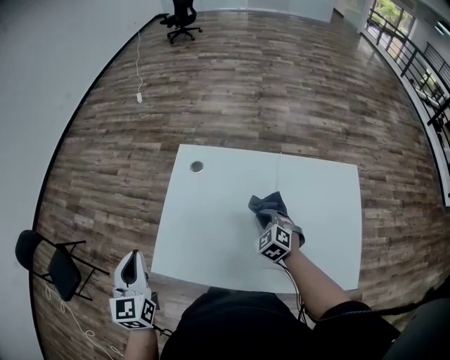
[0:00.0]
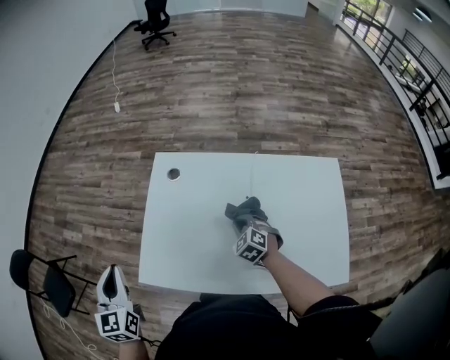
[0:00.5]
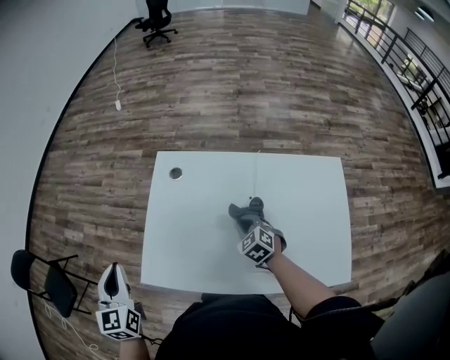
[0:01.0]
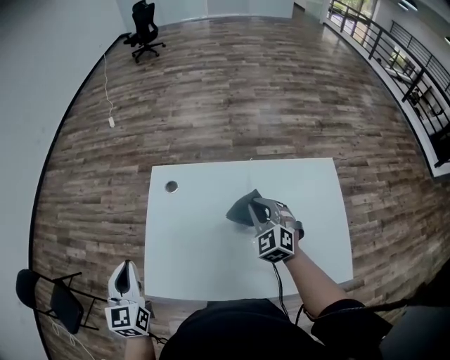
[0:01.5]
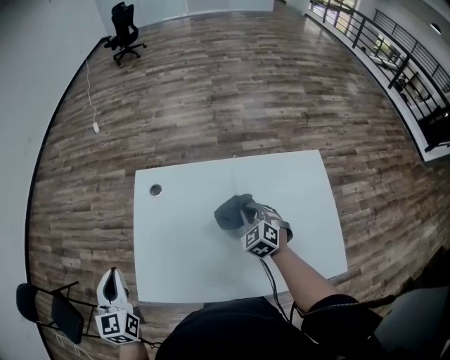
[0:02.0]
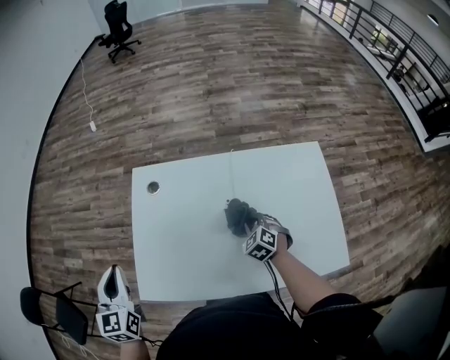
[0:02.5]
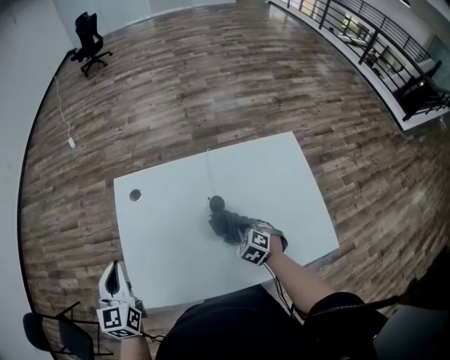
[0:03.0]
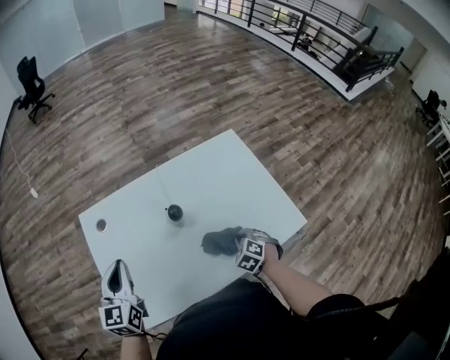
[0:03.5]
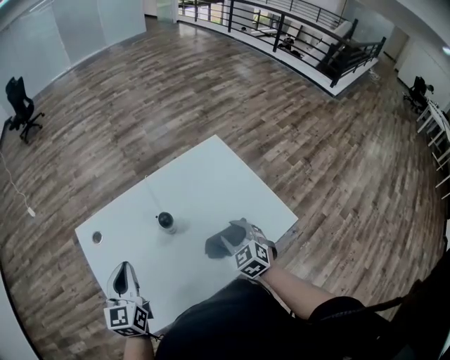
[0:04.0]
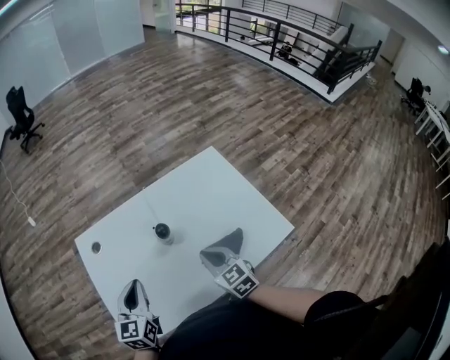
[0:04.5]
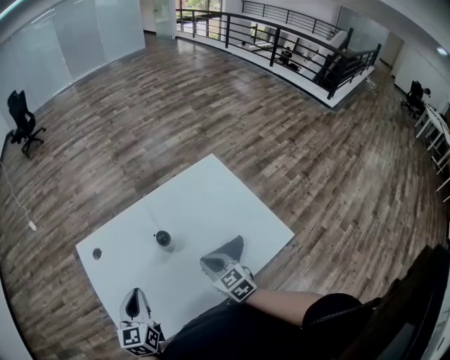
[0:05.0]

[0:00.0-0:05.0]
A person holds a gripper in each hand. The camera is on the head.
0:00.0 to 0:02.5: The right gripper goes about 5 cm to the right, and goes upward and returns, roughly 10 cm each way. The left gripper heads forward, covering roughly 5 cm.
0:02.5 to 0:05.0: The left gripper shifts by some 20 cm, and turns by about 30 degrees, while the right gripper goes approximately 10 cm upward, rotates around the line of its fingers by roughly 40 degrees, clockwise from behind, and opens and closes again.

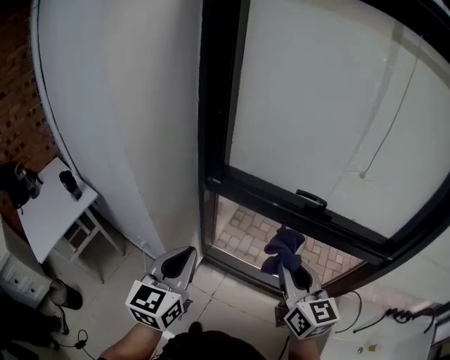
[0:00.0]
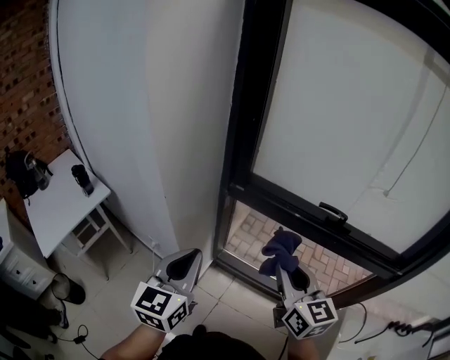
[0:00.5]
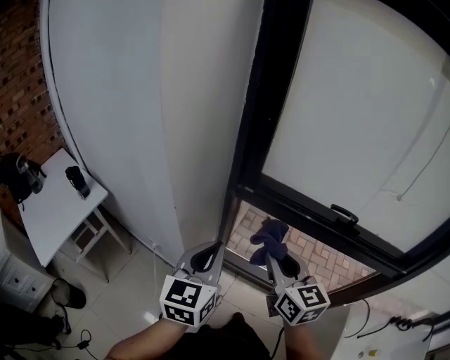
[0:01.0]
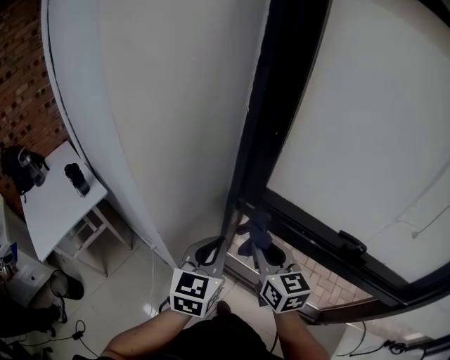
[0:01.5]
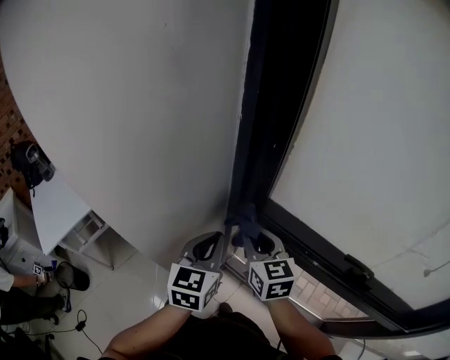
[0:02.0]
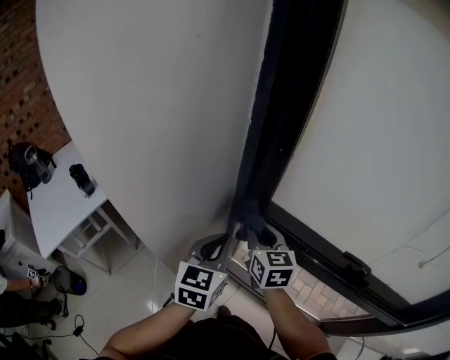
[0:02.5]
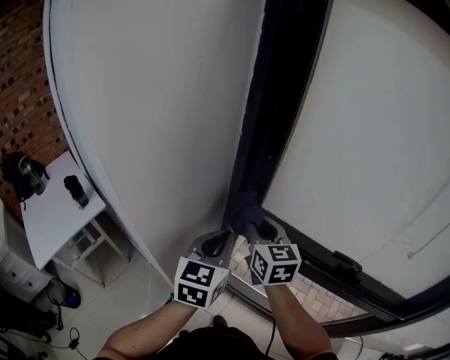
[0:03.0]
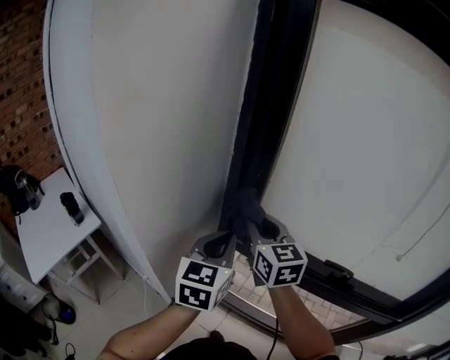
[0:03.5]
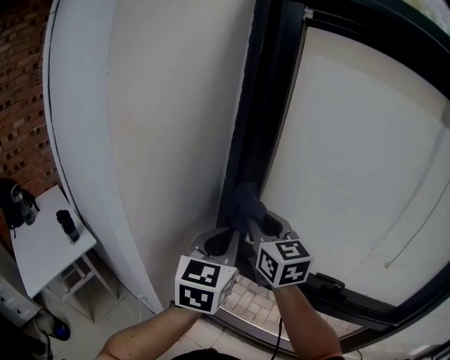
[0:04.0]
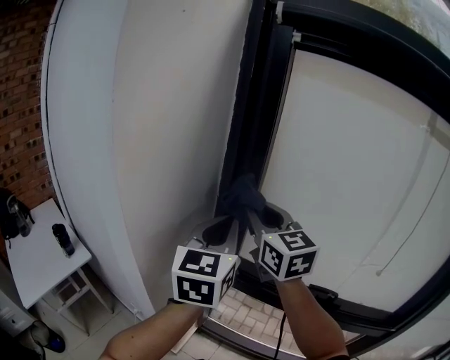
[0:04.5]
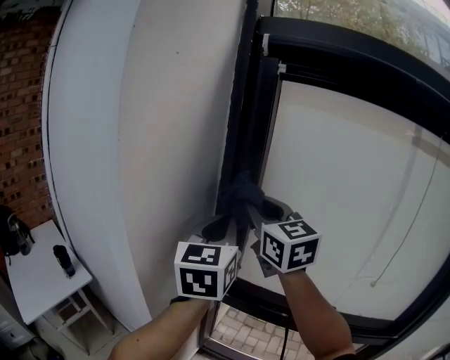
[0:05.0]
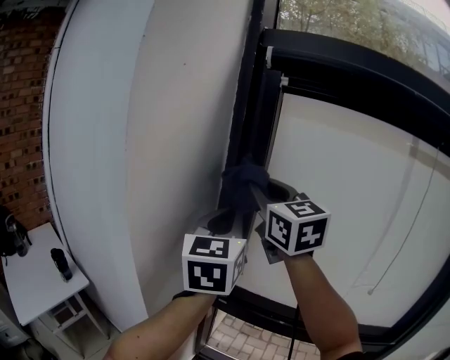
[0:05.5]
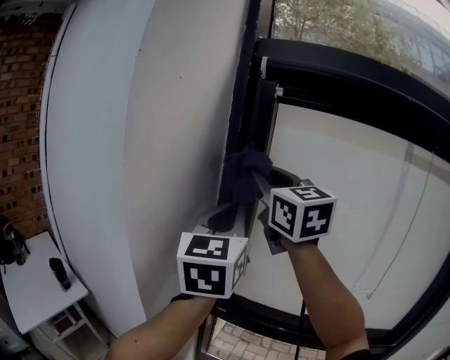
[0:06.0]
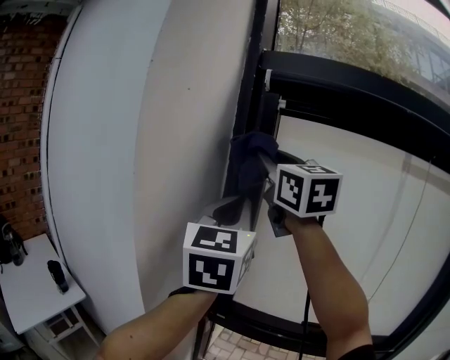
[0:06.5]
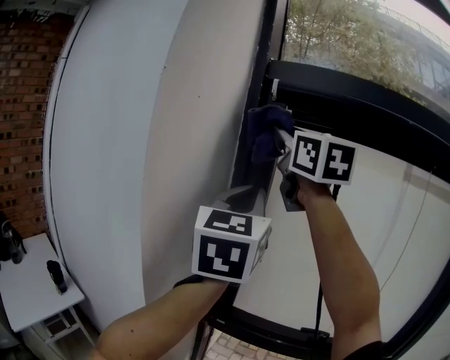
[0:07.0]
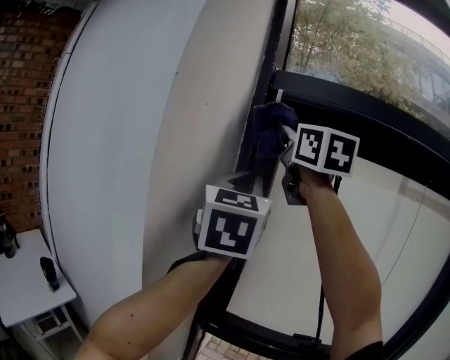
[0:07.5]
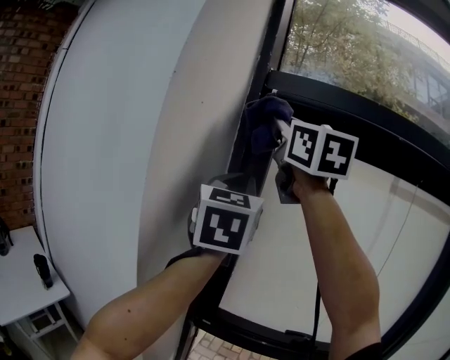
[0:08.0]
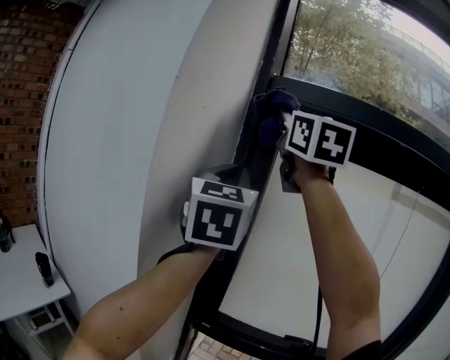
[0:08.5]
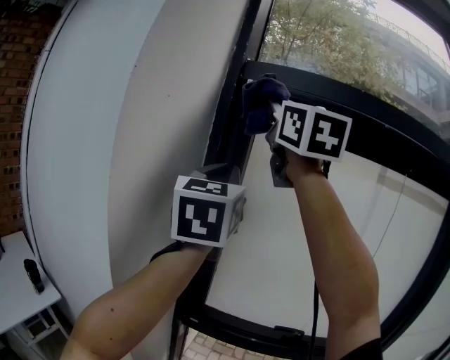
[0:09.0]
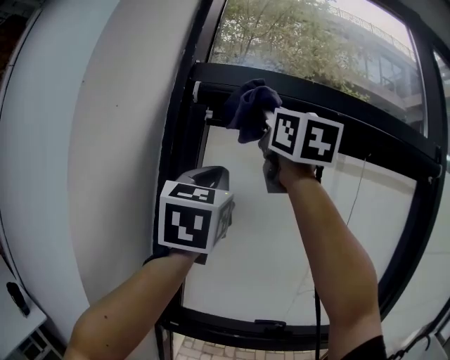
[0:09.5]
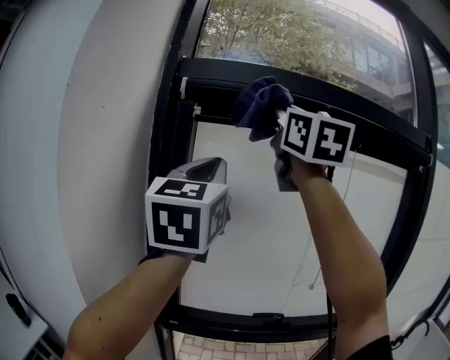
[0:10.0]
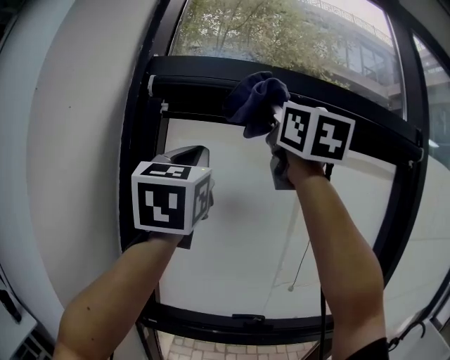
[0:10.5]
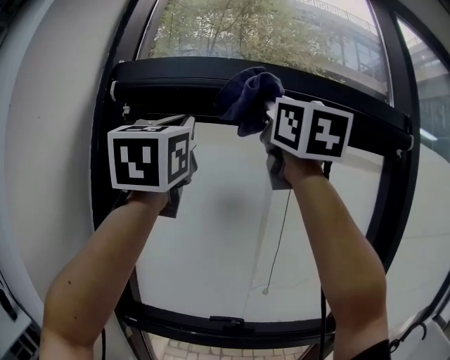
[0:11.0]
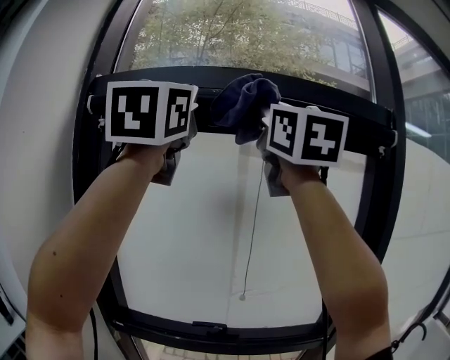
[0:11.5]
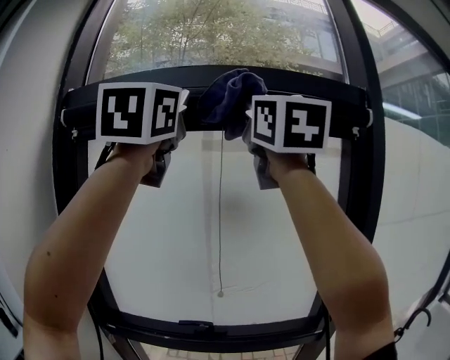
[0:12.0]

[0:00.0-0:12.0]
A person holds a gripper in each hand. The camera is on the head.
0:00.0 to 0:02.0: The right gripper shifts approximately 35 cm forward and to the left, and rotates roughly 20 degrees, while the left gripper moves forward, some 25 cm.
0:02.0 to 0:04.0: The two grippers go some 20 cm upward.
0:04.0 to 0:06.0: The two grippers go some 25 cm upward.
0:06.0 to 0:08.0: The right gripper goes approximately 20 cm upward. The left gripper heads upward, covering about 10 cm.
0:08.0 to 0:10.0: The right gripper goes roughly 20 cm to the right, and swivels some 20 degrees. The left gripper shifts roughly 10 cm to the right.
0:10.0 to 0:12.0: The right gripper moves to the right, some 30 cm, while the left gripper is displaced to the right and upward by roughly 30 cm.

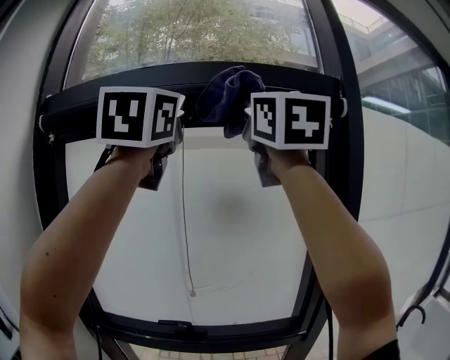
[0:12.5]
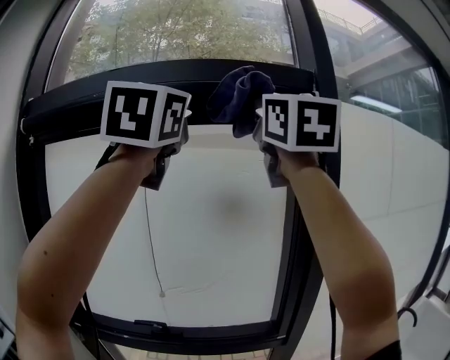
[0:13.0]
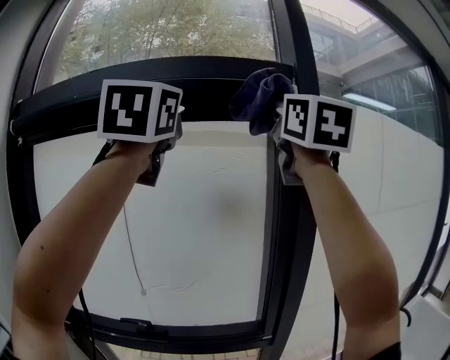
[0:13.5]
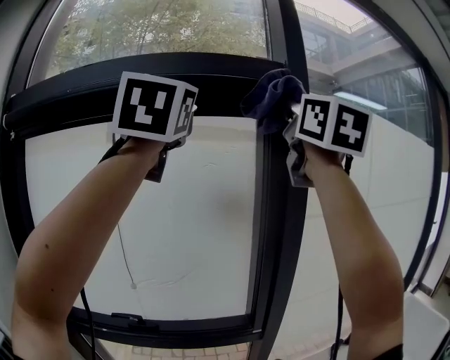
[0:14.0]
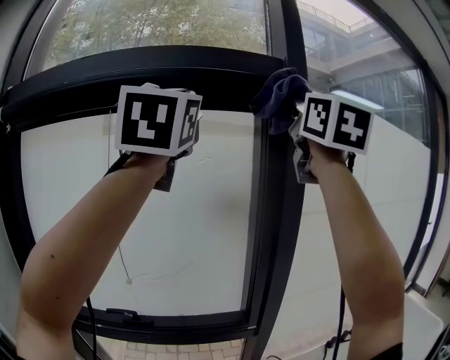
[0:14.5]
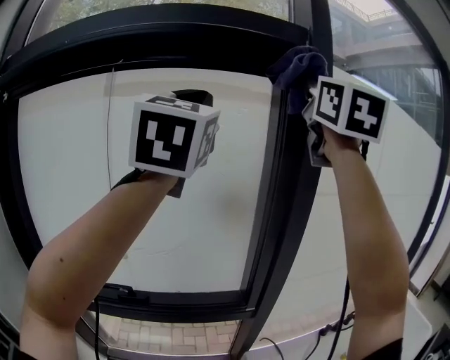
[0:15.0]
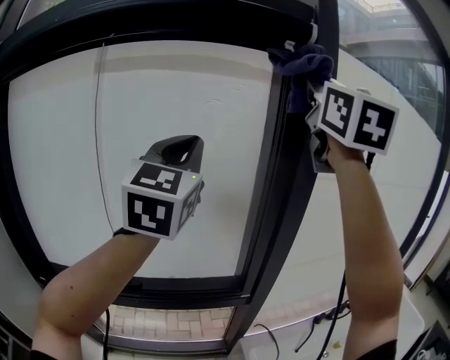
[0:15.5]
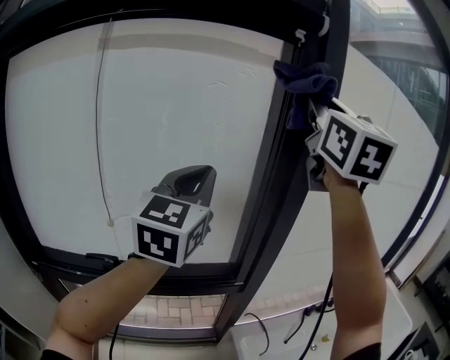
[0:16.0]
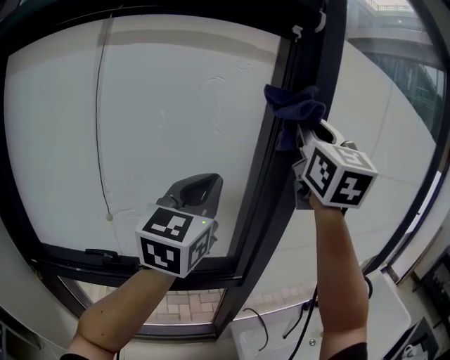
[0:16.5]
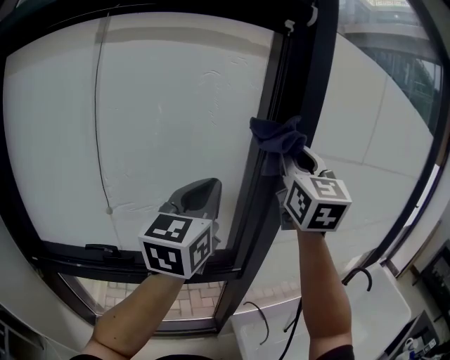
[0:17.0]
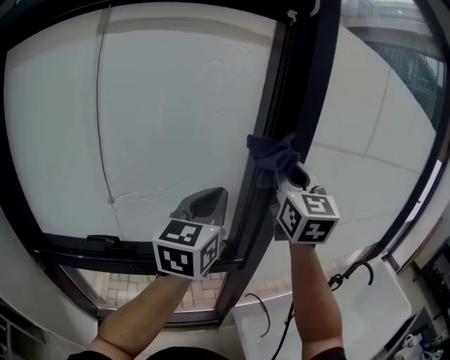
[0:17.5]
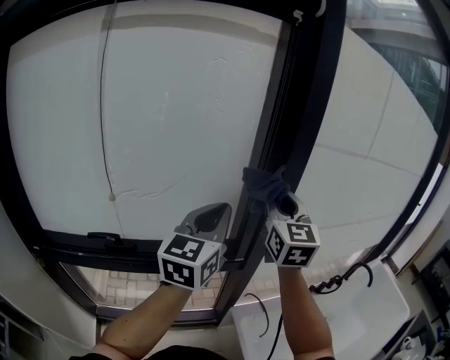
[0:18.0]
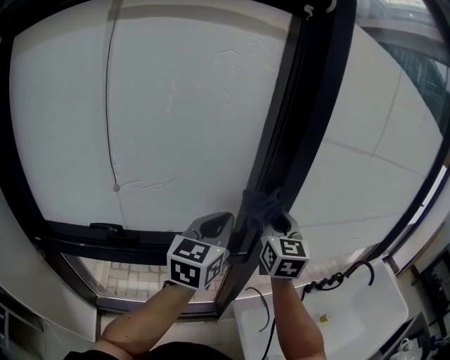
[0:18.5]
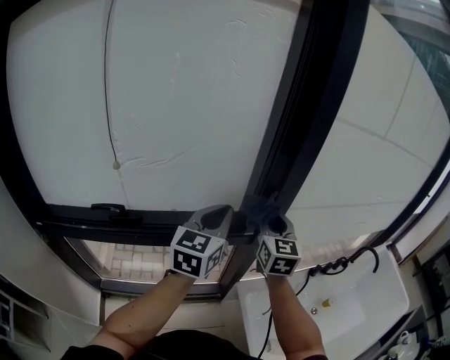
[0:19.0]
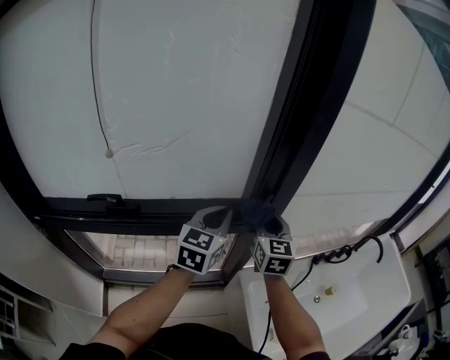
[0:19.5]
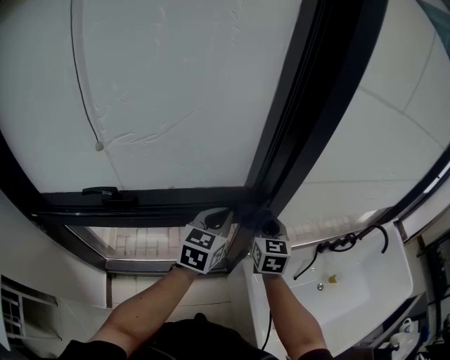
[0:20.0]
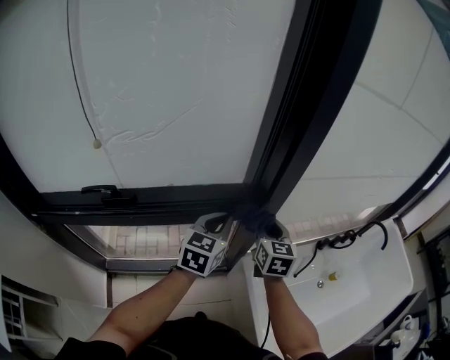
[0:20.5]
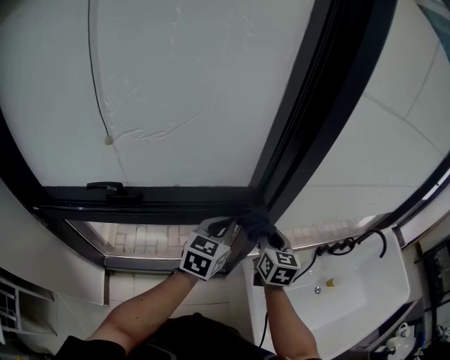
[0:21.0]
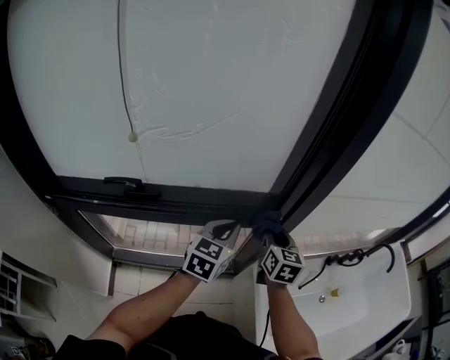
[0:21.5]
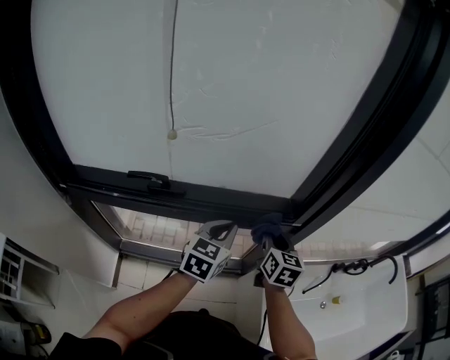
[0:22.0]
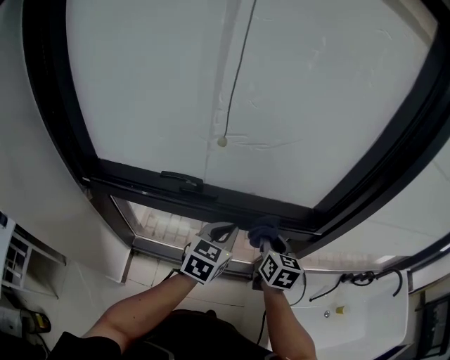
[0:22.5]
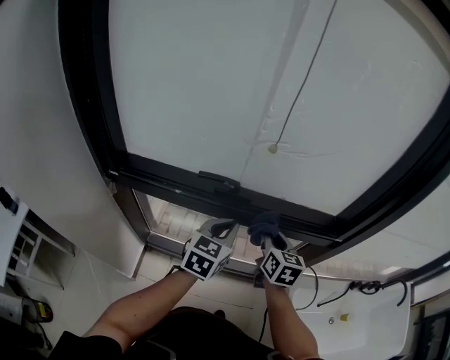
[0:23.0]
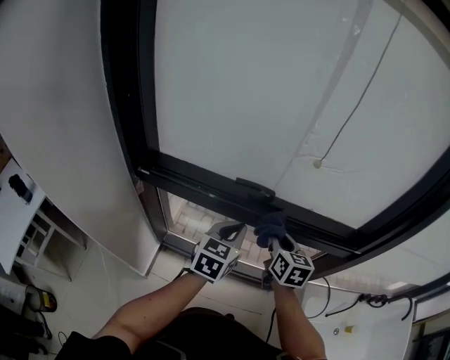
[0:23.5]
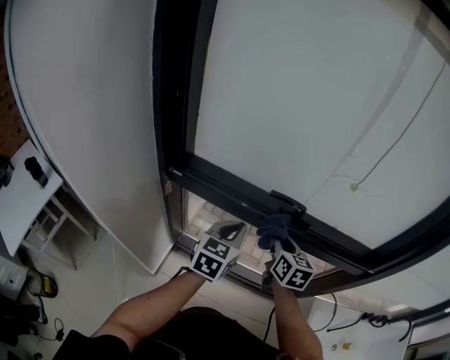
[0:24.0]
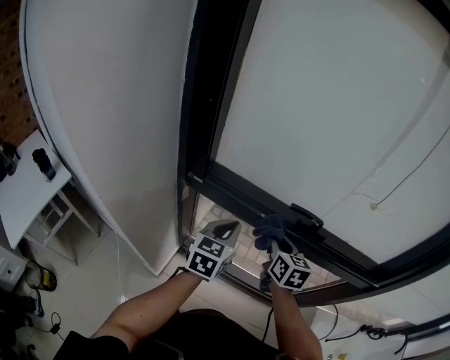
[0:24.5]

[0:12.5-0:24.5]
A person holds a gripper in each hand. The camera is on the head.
0:12.5 to 0:14.5: The right gripper is displaced to the right by about 25 cm; the left gripper travels to the right by approximately 15 cm.
0:14.5 to 0:16.5: The left gripper is displaced downward by some 30 cm, and turns by about 30 degrees; the right gripper heads downward, covering about 20 cm.
0:16.5 to 0:18.5: The right gripper shifts roughly 30 cm downward, and turns by roughly 20 degrees. The left gripper heads downward, covering roughly 15 cm.
0:18.5 to 0:20.5: Both grippers move downward, approximately 25 cm. The right gripper turns by approximately 20 degrees.
0:20.5 to 0:22.5: The two grippers go roughly 20 cm to the left.
0:22.5 to 0:24.5: The two grippers go about 35 cm to the left. The left gripper rotates approximately 20 degrees. The right gripper rotates some 20 degrees.
